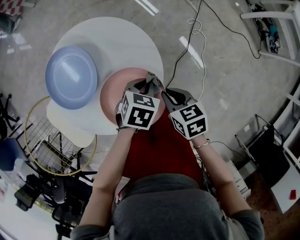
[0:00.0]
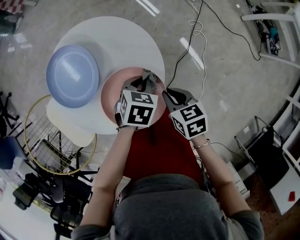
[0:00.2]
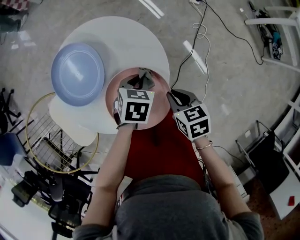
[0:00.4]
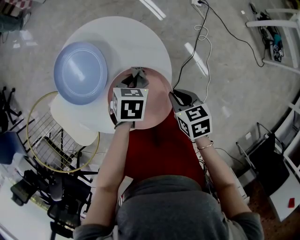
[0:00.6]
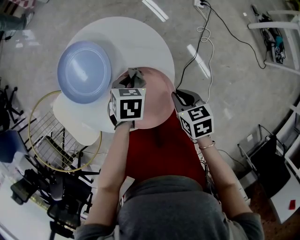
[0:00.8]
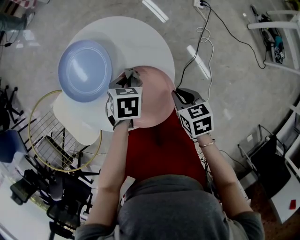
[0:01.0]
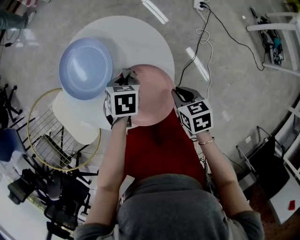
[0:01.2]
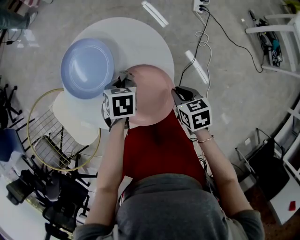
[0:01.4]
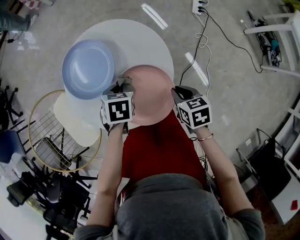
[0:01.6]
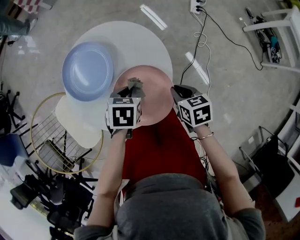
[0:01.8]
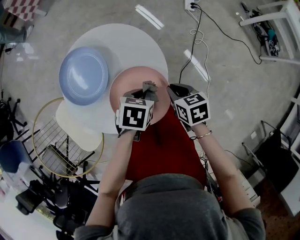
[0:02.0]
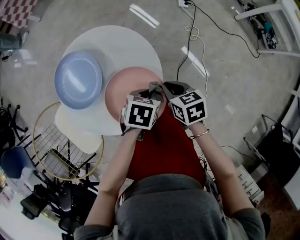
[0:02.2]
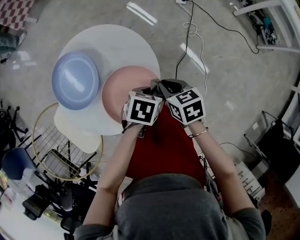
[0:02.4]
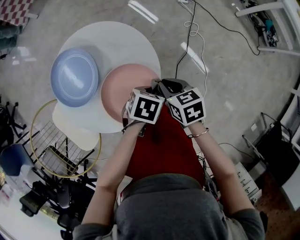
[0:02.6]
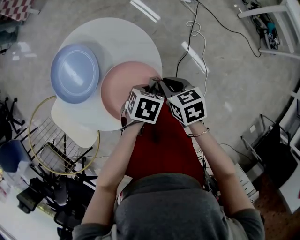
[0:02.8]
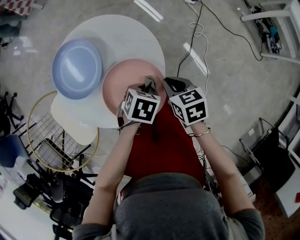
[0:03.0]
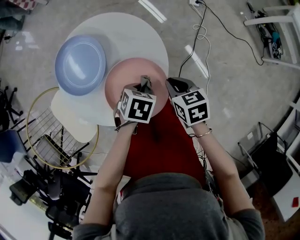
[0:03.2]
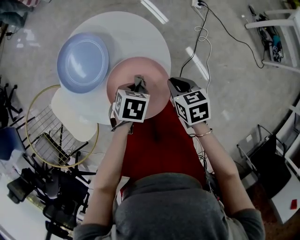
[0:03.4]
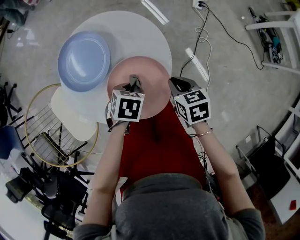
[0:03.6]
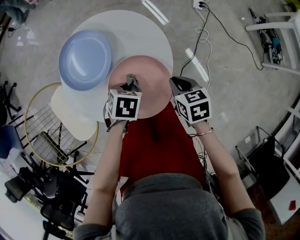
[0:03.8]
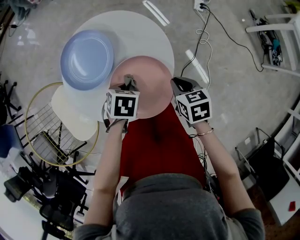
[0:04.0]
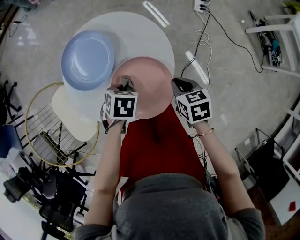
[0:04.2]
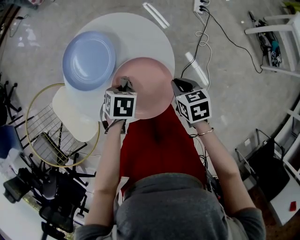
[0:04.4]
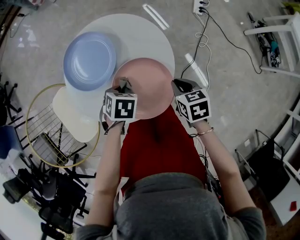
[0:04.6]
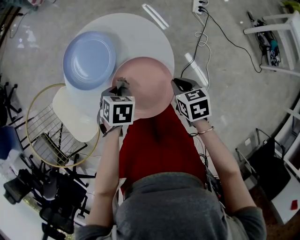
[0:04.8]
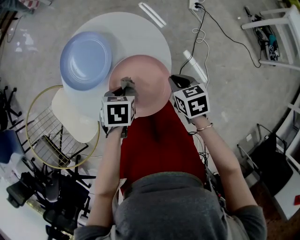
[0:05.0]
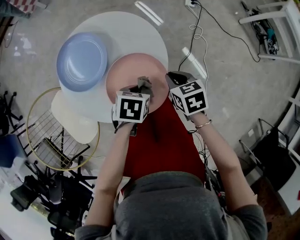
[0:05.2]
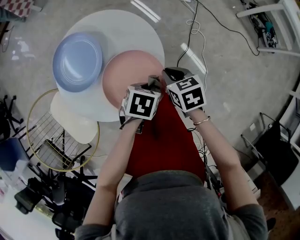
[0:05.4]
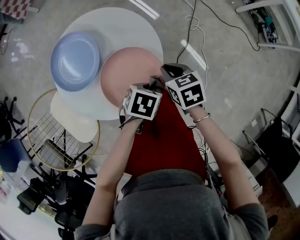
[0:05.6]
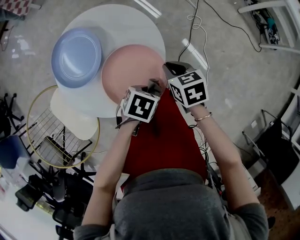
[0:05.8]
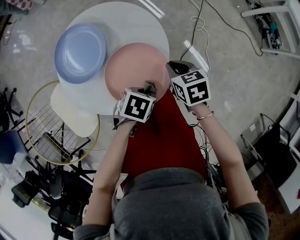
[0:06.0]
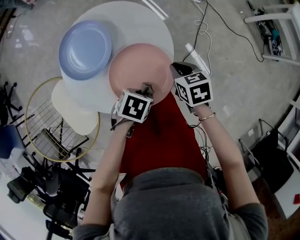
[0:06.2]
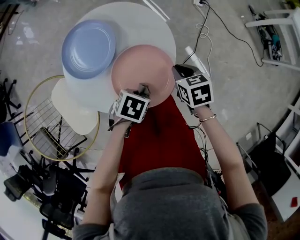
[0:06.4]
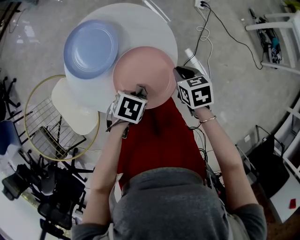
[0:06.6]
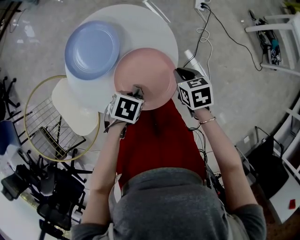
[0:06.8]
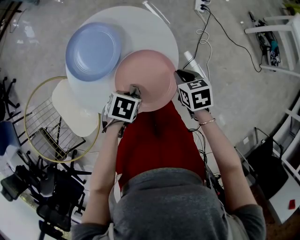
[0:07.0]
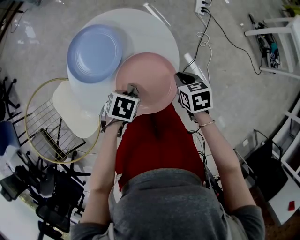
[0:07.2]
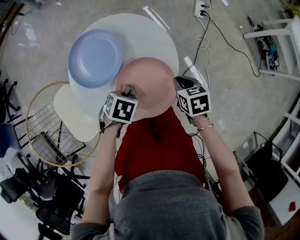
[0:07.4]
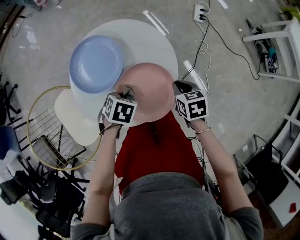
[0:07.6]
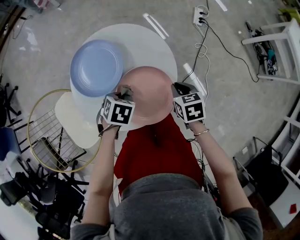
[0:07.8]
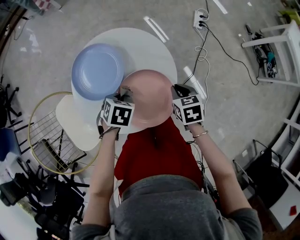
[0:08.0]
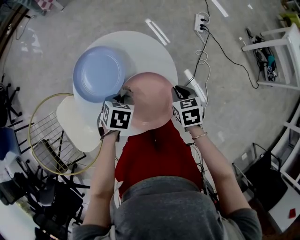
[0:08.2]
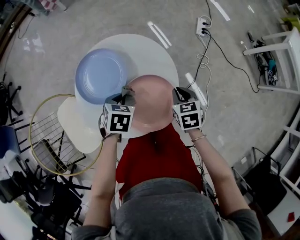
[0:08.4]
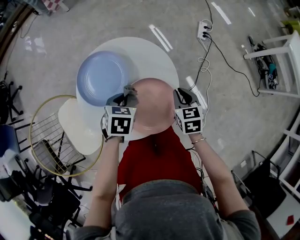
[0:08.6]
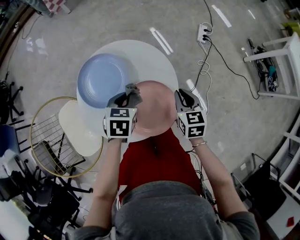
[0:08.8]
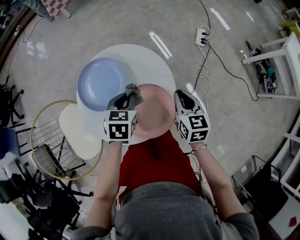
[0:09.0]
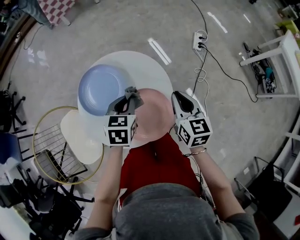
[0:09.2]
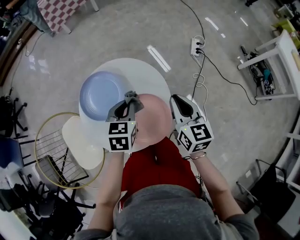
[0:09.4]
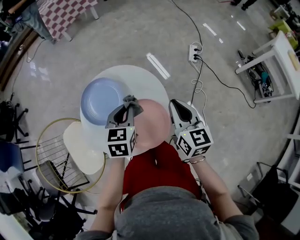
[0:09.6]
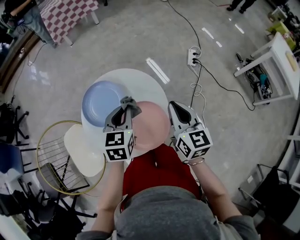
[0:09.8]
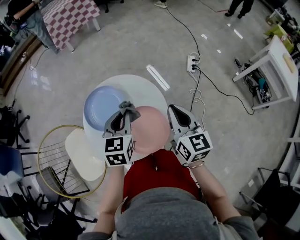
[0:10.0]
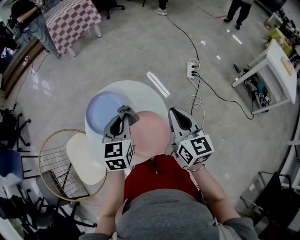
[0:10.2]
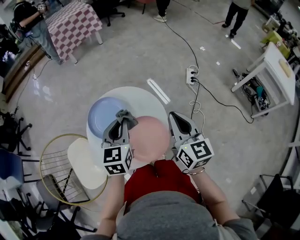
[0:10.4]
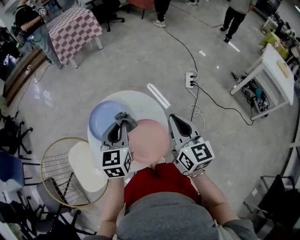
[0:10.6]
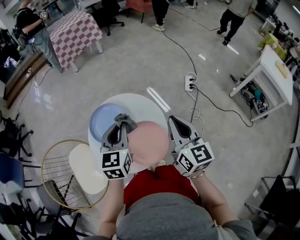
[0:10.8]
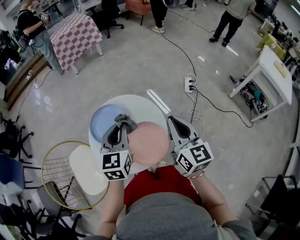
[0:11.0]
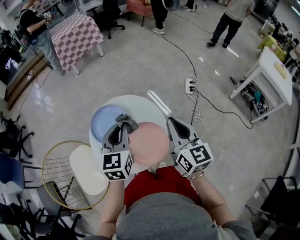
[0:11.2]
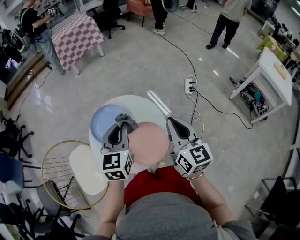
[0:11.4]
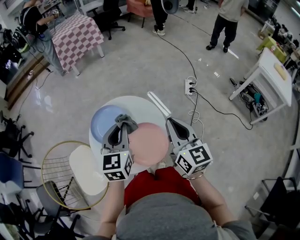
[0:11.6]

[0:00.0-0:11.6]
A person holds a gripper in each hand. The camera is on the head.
0:00.0 to 0:01.4: The left gripper goes approximately 15 cm to the left, and swivels approximately 30 degrees.
0:01.4 to 0:02.8: The left gripper shifts by approximately 15 cm, and rotates roughly 30 degrees.
0:02.8 to 0:04.4: The left gripper moves about 15 cm, and turns by about 20 degrees.
0:04.4 to 0:05.8: The left gripper shifts by approximately 15 cm, and changes its angle by some 30 degrees.
0:05.8 to 0:07.2: The left gripper changes place by about 15 cm.
0:07.2 to 0:08.8: The left gripper moves some 15 cm, and rotates approximately 30 degrees. Meanwhile the right gripper moves roughly 10 cm, and changes its angle by about 20 degrees.
0:08.8 to 0:10.2: The grippers both shift upward by some 15 cm. The left gripper changes its angle by about 30 degrees, while the right gripper turns by roughly 30 degrees.
0:10.2 to 0:11.6: The left gripper travels upward by approximately 5 cm, while the right gripper shifts by some 5 cm.

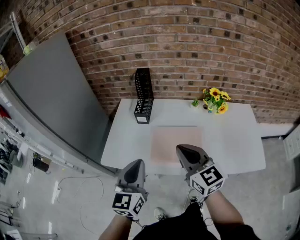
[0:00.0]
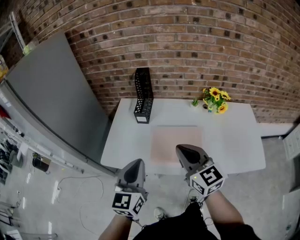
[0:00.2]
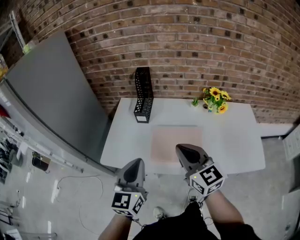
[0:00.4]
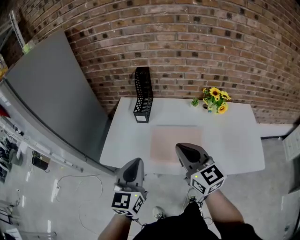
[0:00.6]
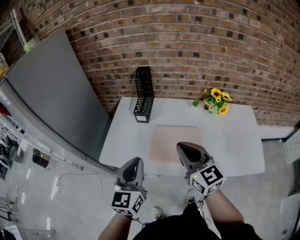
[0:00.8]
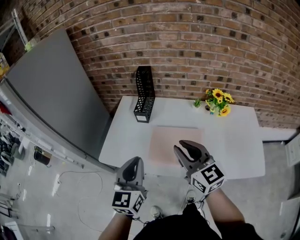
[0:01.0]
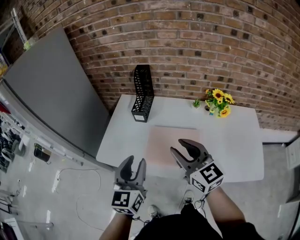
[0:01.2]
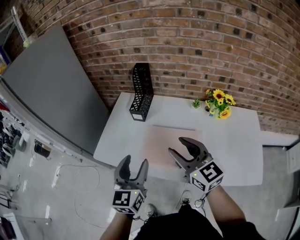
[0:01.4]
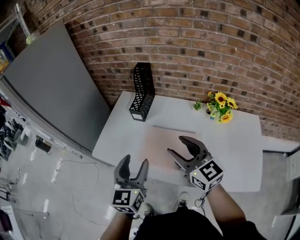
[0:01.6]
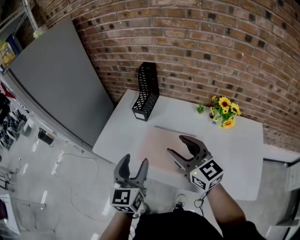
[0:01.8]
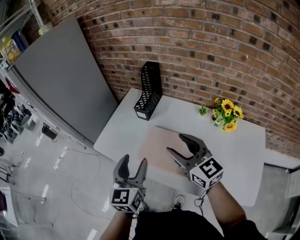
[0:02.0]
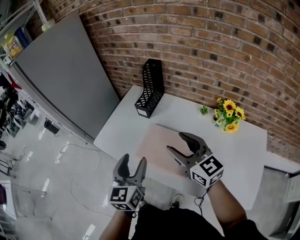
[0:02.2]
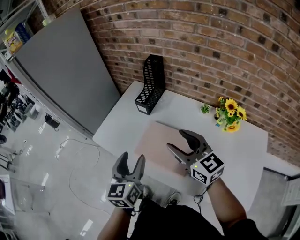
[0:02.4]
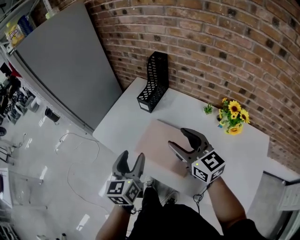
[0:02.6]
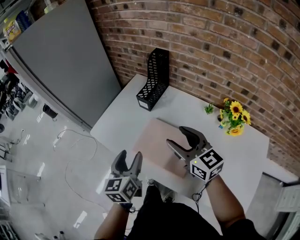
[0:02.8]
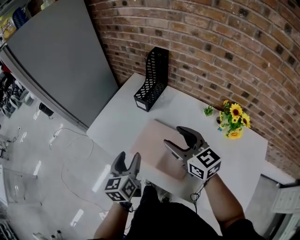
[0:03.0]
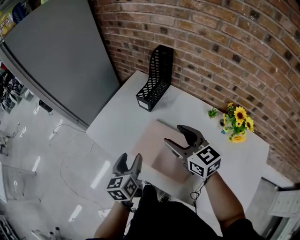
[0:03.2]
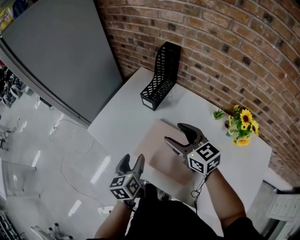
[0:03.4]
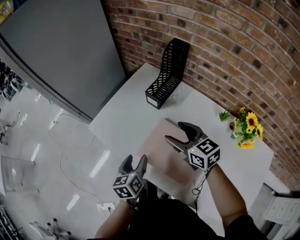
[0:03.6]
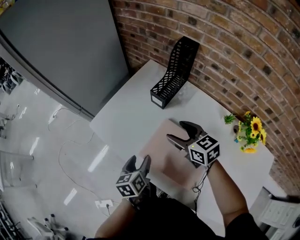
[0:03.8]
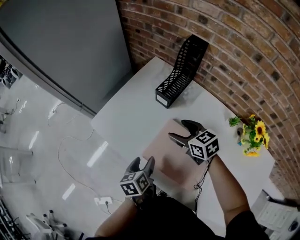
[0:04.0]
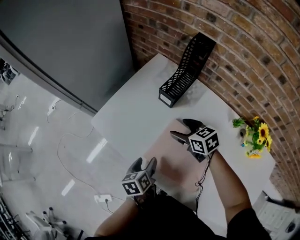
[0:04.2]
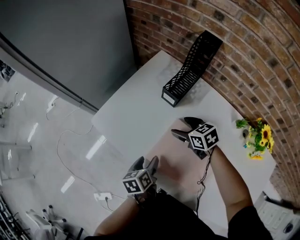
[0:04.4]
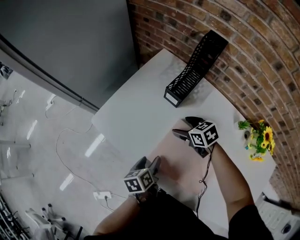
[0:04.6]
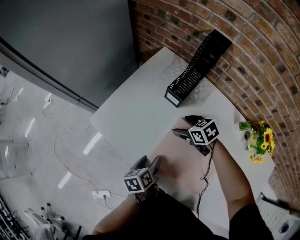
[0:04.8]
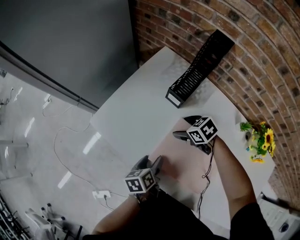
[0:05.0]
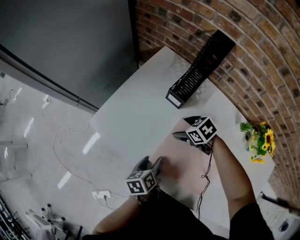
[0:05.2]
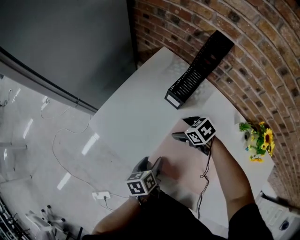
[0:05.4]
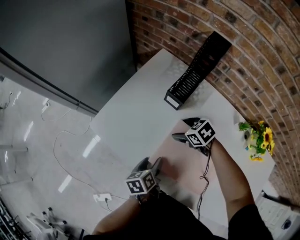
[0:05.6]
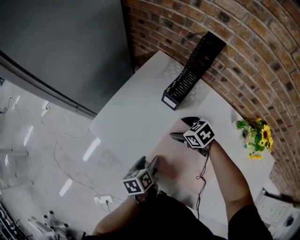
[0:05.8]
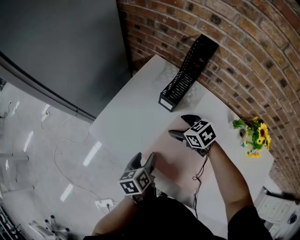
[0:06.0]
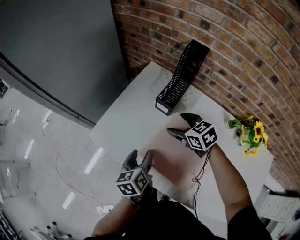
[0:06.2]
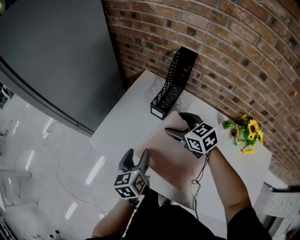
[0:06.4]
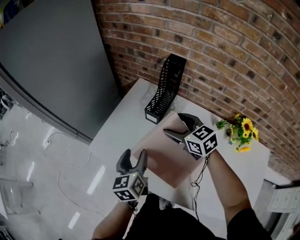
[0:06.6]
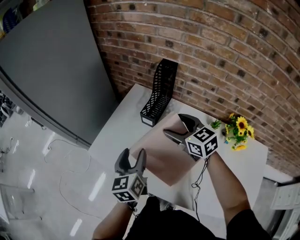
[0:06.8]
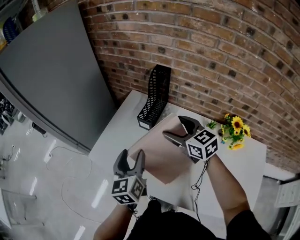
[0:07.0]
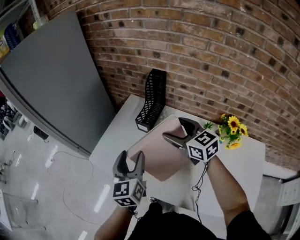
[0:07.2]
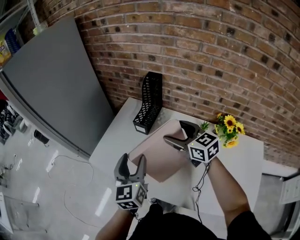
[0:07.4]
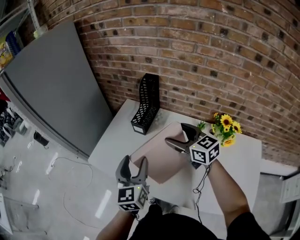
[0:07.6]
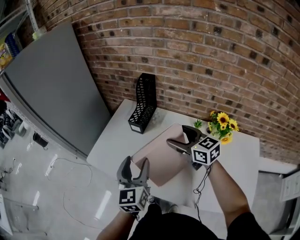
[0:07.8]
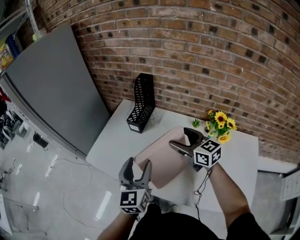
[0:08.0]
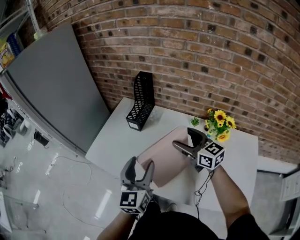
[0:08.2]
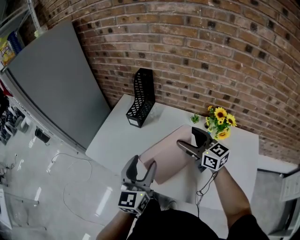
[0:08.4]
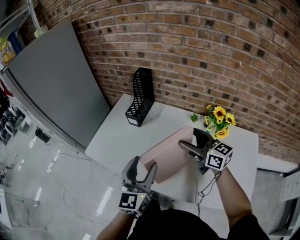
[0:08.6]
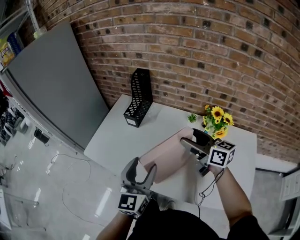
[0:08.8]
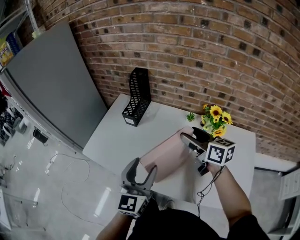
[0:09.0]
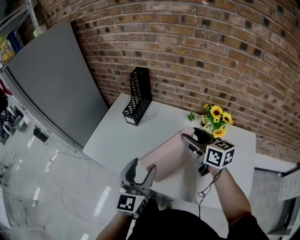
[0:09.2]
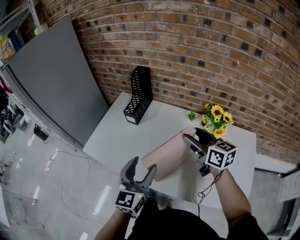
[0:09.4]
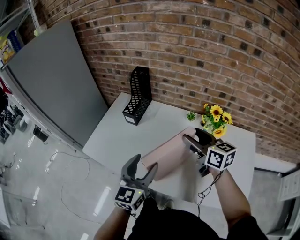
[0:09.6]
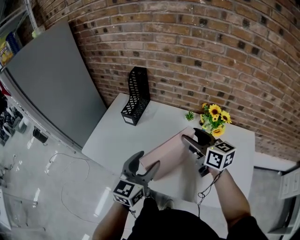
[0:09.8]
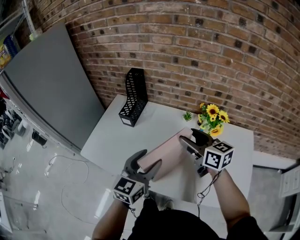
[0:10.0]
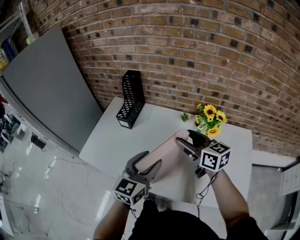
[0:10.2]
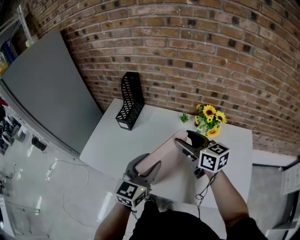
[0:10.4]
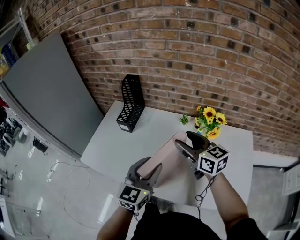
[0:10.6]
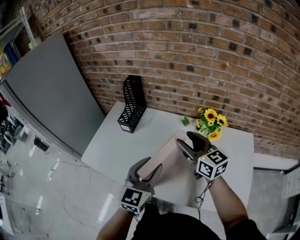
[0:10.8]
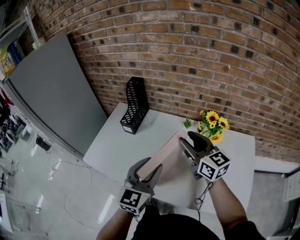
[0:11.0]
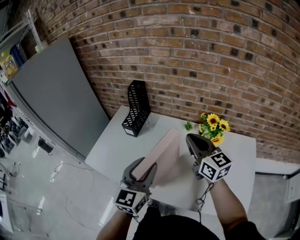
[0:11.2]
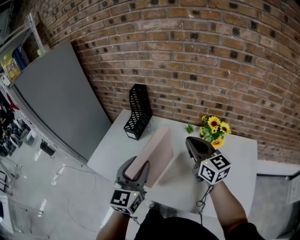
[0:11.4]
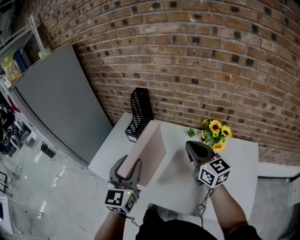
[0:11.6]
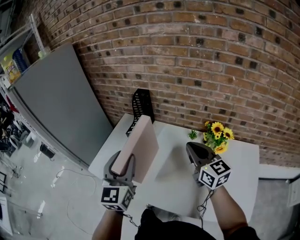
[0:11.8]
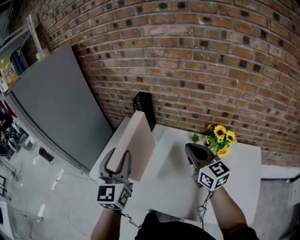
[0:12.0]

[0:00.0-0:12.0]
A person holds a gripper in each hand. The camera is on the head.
0:00.0 to 0:01.6: The right gripper moves to the right and forward, some 10 cm, and opens up, while the left gripper travels to the right by approximately 10 cm, and opens up.
0:01.6 to 0:03.0: The right gripper is displaced forward and downward by about 10 cm. Meanwhile the left gripper heads downward, covering roughly 10 cm, and rotates some 30 degrees.
0:03.0 to 0:04.4: The right gripper is displaced downward and forward by some 30 cm, and tilts its fingers approximately 30 degrees downward, while the left gripper is displaced downward by approximately 20 cm, and turns by approximately 30 degrees.
0:04.4 to 0:06.0: The left gripper shifts some 5 cm forward.
0:06.0 to 0:07.6: The right gripper shifts approximately 25 cm upward and backward, and points its fingers roughly 40 degrees further upward. Meanwhile the left gripper travels upward by some 25 cm, and changes its angle by approximately 50 degrees.
0:07.6 to 0:09.0: The right gripper moves to the right and backward, roughly 15 cm, and swivels roughly 20 degrees. The left gripper travels backward and to the right by about 15 cm.
0:09.0 to 0:10.4: The left gripper goes approximately 5 cm to the right.
0:10.4 to 0:12.0: The right gripper changes place by approximately 5 cm, and closes up; the left gripper goes roughly 20 cm to the left, upward and forward, and changes its angle by some 30 degrees.
